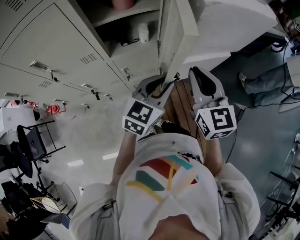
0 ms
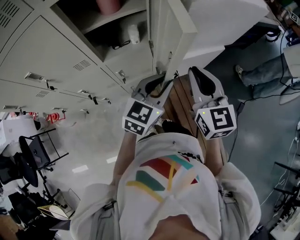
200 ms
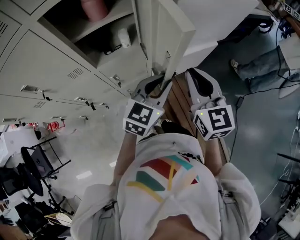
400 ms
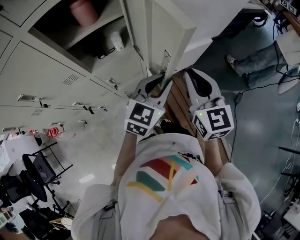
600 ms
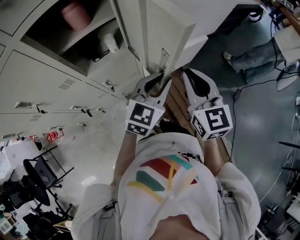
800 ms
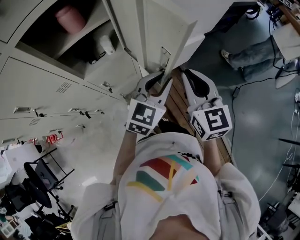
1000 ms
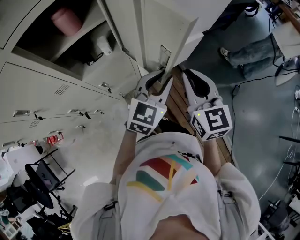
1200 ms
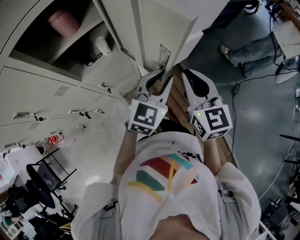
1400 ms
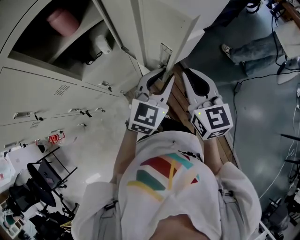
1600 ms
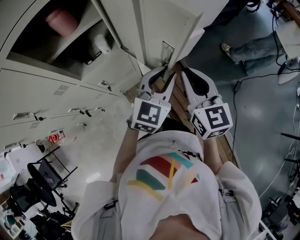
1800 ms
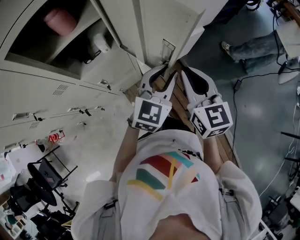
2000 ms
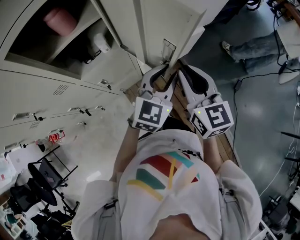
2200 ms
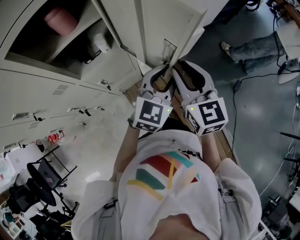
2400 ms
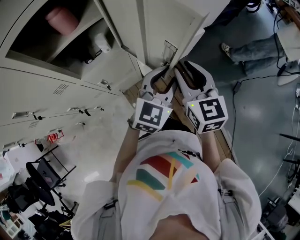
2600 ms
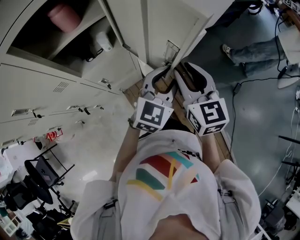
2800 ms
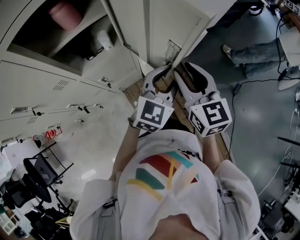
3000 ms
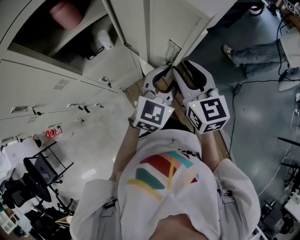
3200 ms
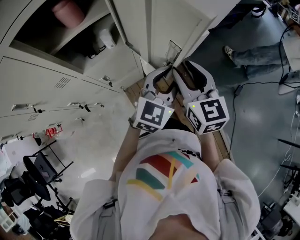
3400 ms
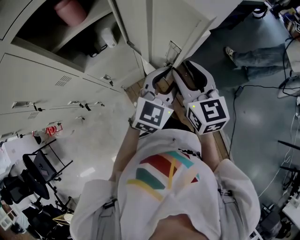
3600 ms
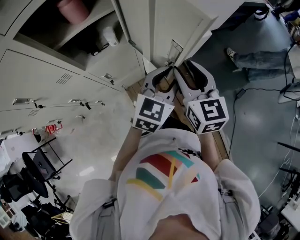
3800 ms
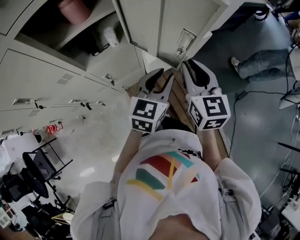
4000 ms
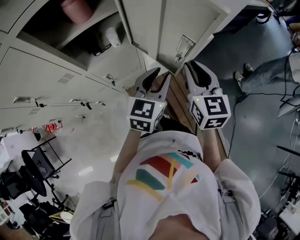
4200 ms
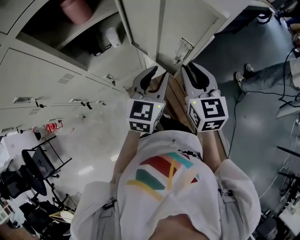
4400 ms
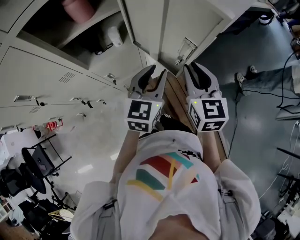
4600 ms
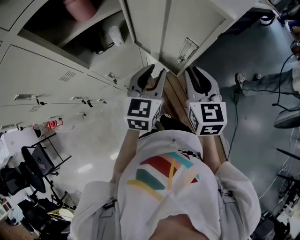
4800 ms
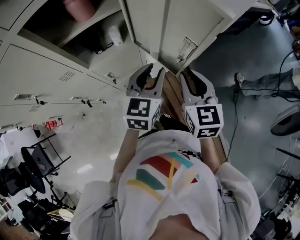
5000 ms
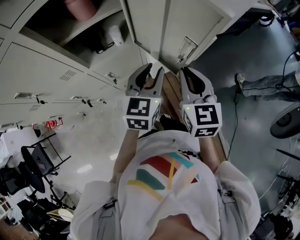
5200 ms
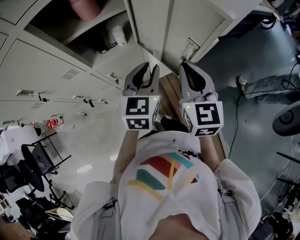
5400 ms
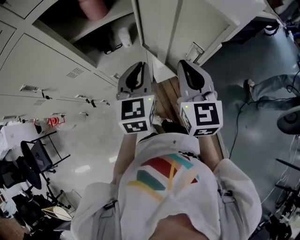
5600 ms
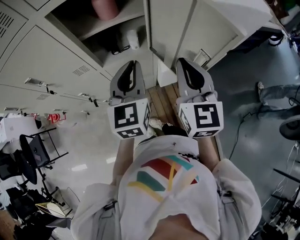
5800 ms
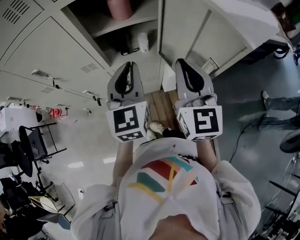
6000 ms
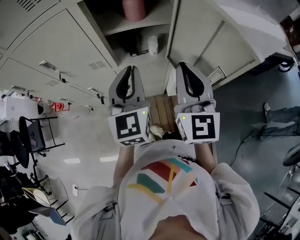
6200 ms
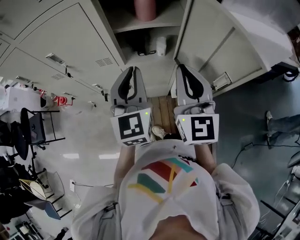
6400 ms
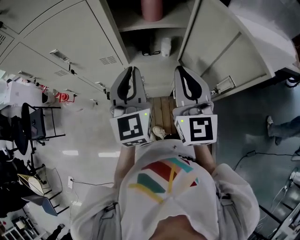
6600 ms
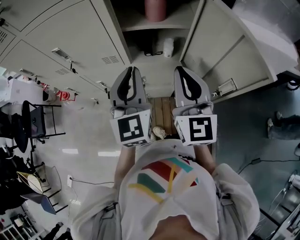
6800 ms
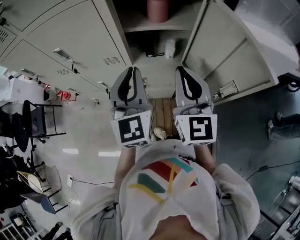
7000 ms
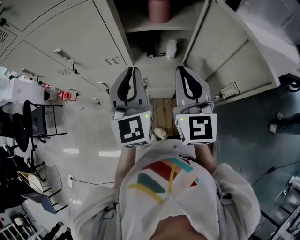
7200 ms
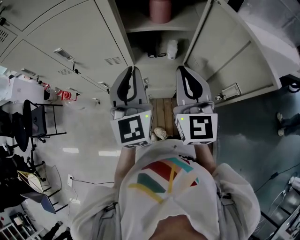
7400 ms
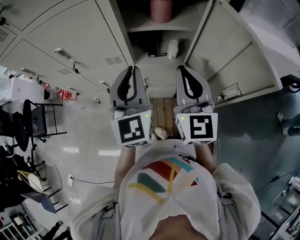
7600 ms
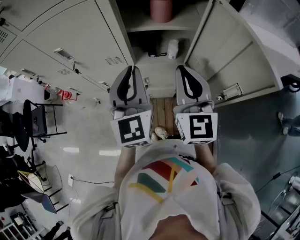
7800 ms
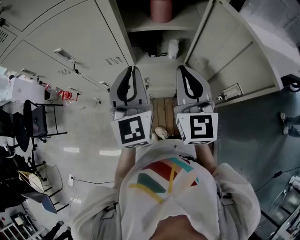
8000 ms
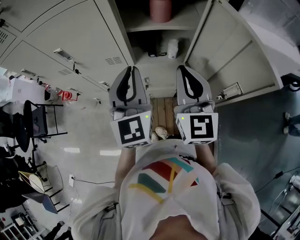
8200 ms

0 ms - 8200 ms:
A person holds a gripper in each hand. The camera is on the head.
0 ms - 1600 ms: Both grippers move to the right, approximately 10 cm.
1600 ms - 3200 ms: The right gripper opens up.
3200 ms - 5000 ms: The left gripper is displaced to the left by approximately 10 cm, and swivels approximately 20 degrees.
5000 ms - 6600 ms: The left gripper ends up some 25 cm from where it was, and turns by about 50 degrees. Meanwhile the right gripper shifts by some 20 cm, and swivels approximately 30 degrees.
6600 ms - 8200 ms: There are only small adjustments of the grippers.

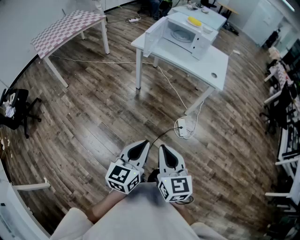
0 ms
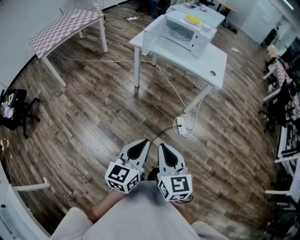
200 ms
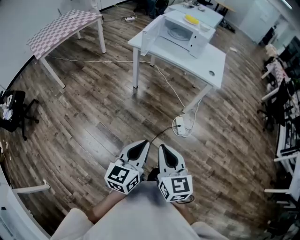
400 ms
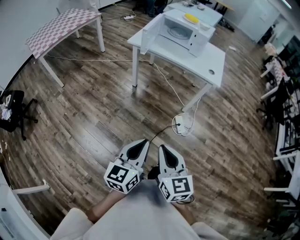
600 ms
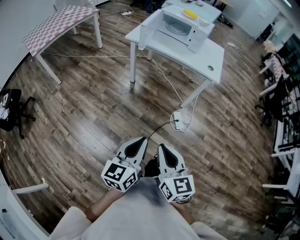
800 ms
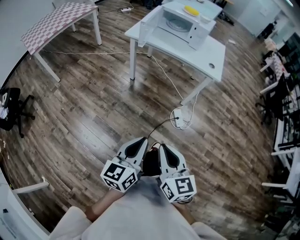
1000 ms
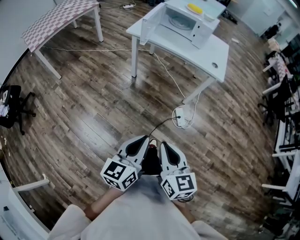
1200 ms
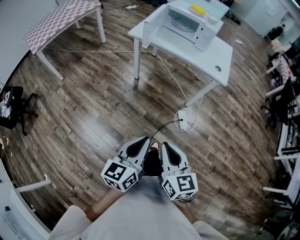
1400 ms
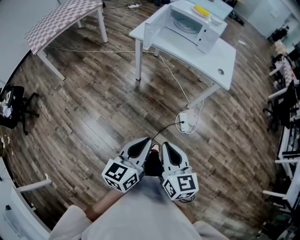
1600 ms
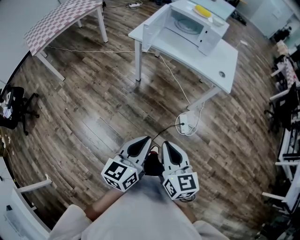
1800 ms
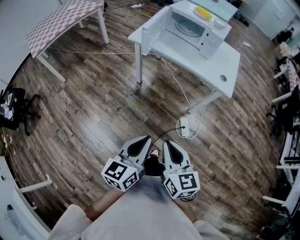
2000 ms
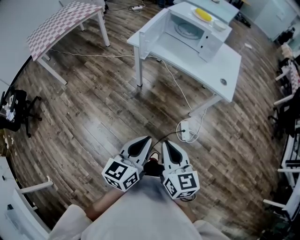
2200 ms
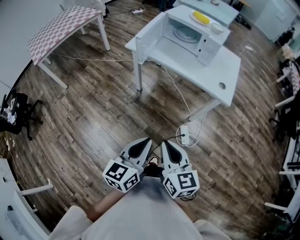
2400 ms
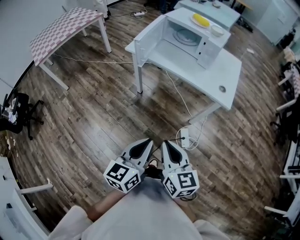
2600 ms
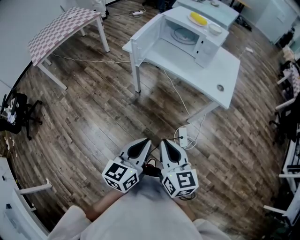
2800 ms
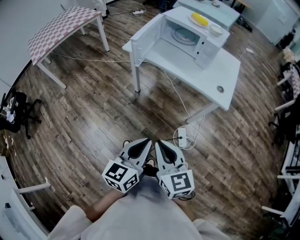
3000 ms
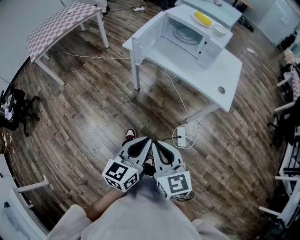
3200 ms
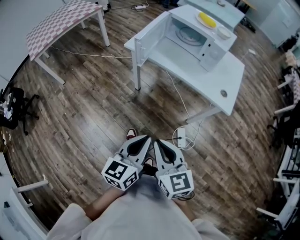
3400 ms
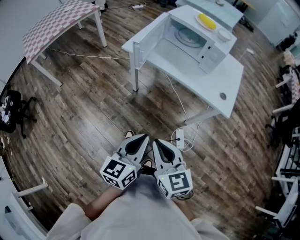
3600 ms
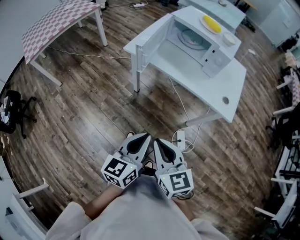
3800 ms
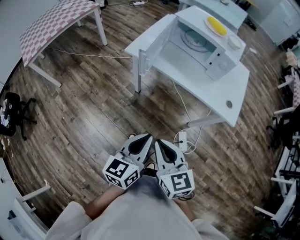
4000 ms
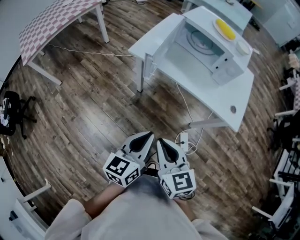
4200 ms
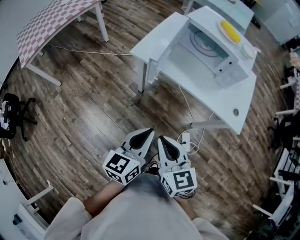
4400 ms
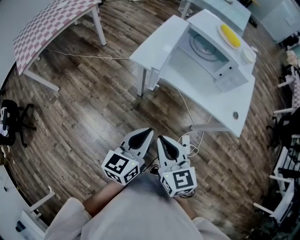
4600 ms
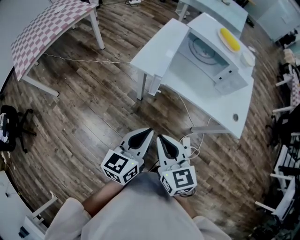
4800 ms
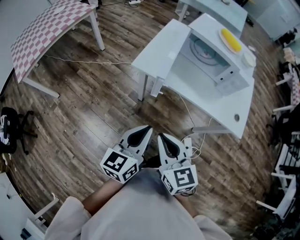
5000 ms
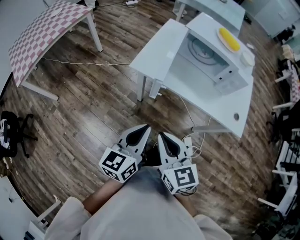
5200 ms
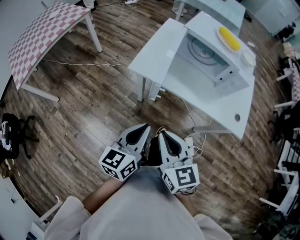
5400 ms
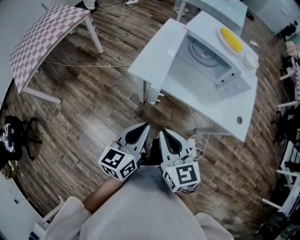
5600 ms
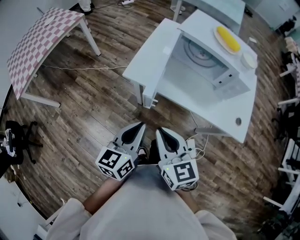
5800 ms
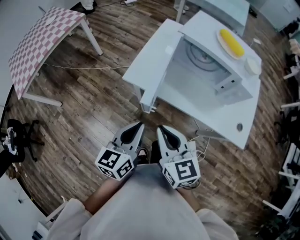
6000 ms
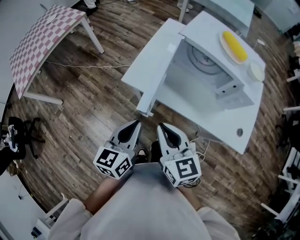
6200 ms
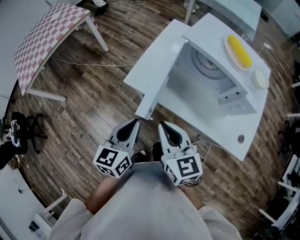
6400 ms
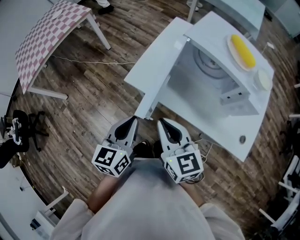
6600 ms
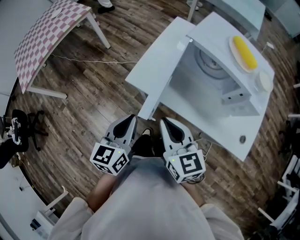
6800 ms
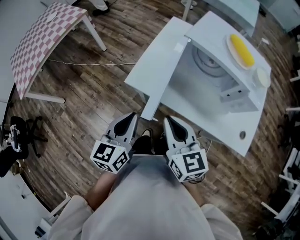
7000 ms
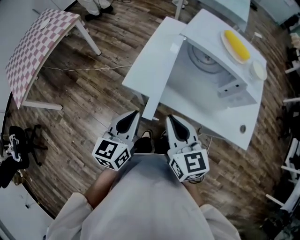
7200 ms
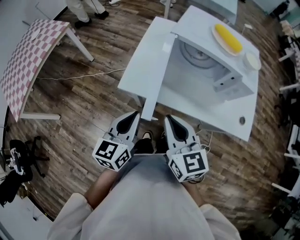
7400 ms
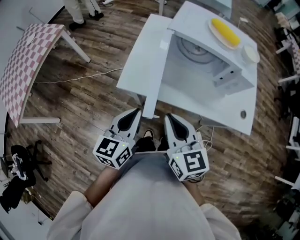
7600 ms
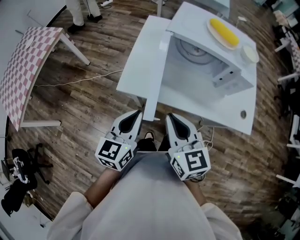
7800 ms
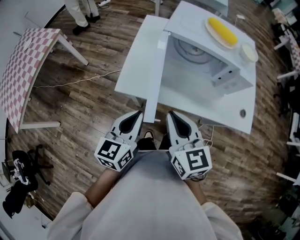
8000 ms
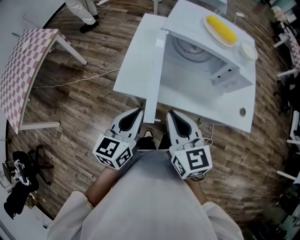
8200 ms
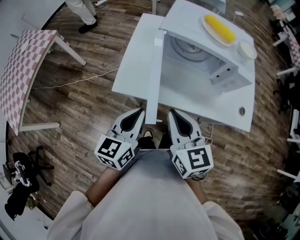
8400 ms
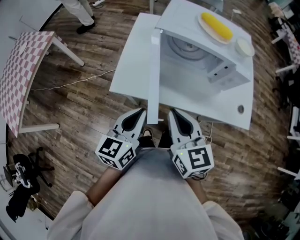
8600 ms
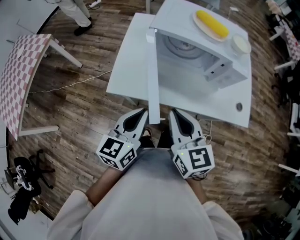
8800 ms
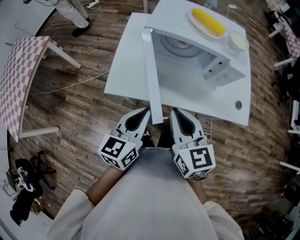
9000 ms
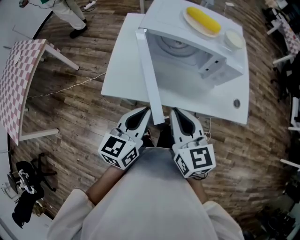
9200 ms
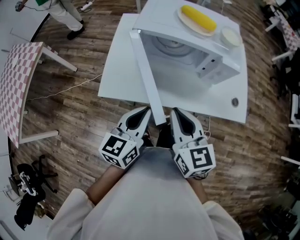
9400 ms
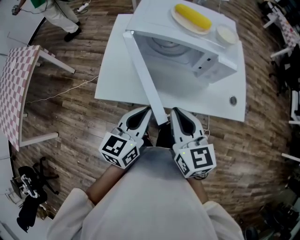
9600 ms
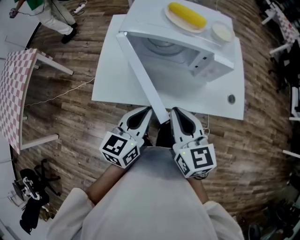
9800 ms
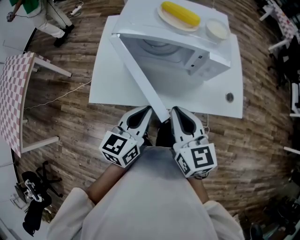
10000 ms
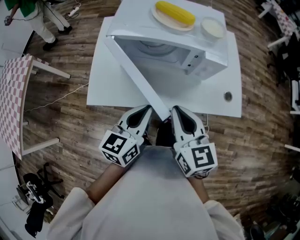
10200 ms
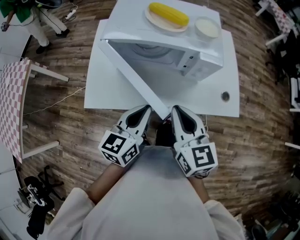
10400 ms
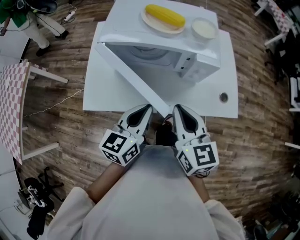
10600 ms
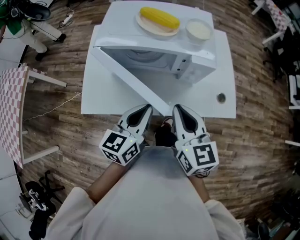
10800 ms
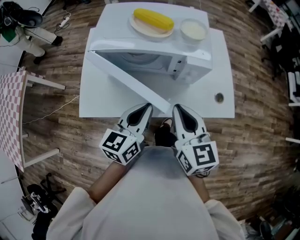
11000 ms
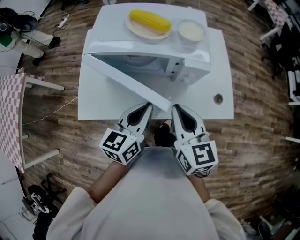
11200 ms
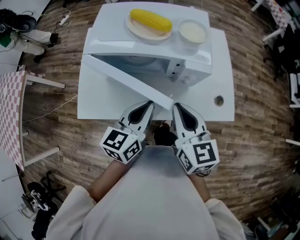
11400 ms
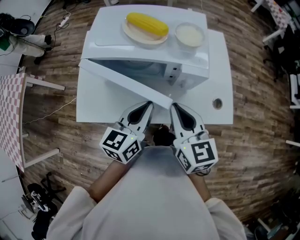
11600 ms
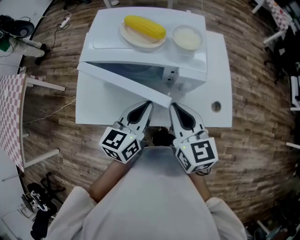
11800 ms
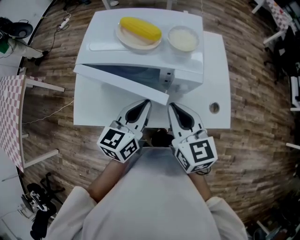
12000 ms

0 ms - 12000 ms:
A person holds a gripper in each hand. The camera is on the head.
0 ms - 1600 ms: Both grippers move forward, roughly 10 cm.
1600 ms - 3000 ms: The right gripper goes roughly 15 cm forward, while the left gripper is displaced forward and to the right by approximately 15 cm.
3000 ms - 4400 ms: Both grippers move forward and to the left, about 25 cm.
4400 ms - 6000 ms: Both grippers move forward, roughly 20 cm.
6000 ms - 7600 ms: The grippers both shift forward by roughly 10 cm.
7600 ms - 9000 ms: Both grippers move to the right, approximately 5 cm.
9000 ms - 10400 ms: The right gripper travels to the right by some 10 cm, while the left gripper goes some 10 cm to the right and forward.
10400 ms - 12000 ms: The grippers both shift forward and to the right by some 10 cm.

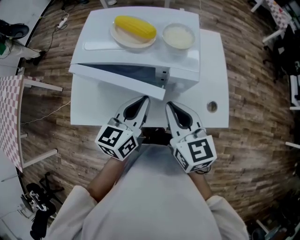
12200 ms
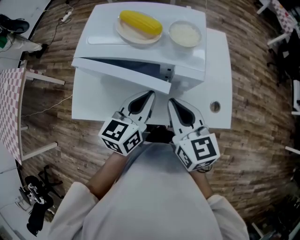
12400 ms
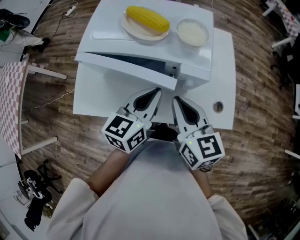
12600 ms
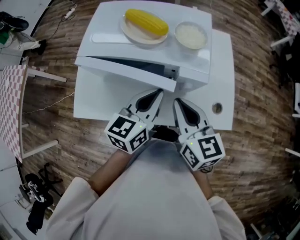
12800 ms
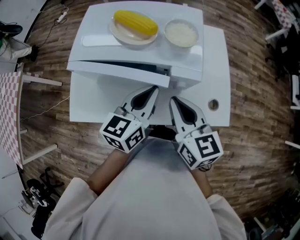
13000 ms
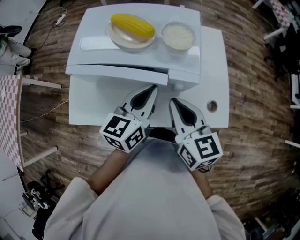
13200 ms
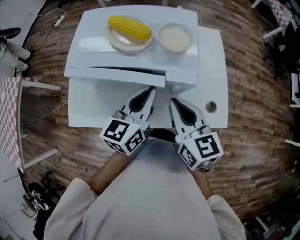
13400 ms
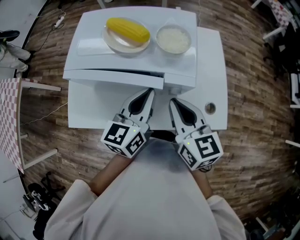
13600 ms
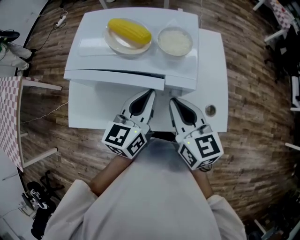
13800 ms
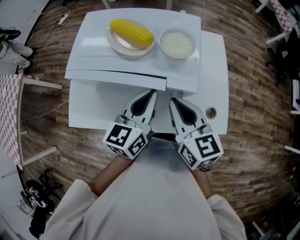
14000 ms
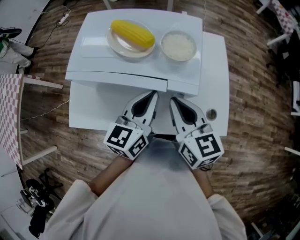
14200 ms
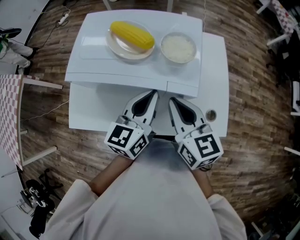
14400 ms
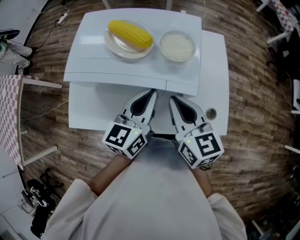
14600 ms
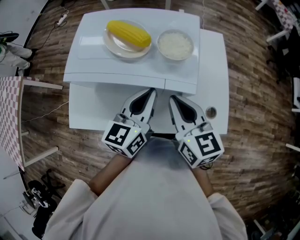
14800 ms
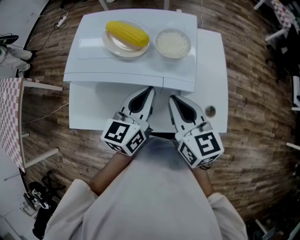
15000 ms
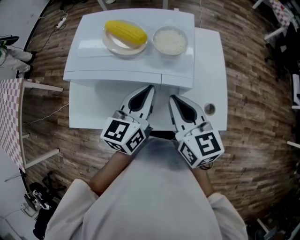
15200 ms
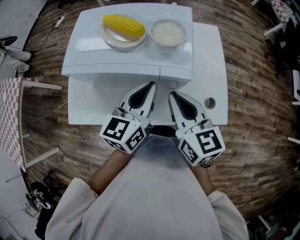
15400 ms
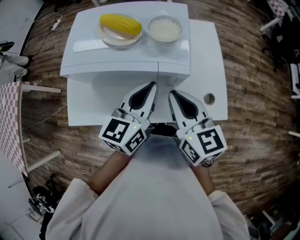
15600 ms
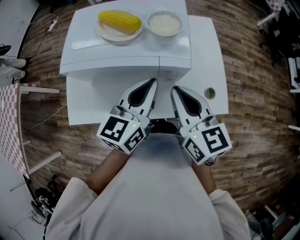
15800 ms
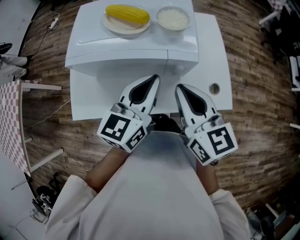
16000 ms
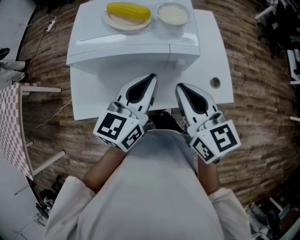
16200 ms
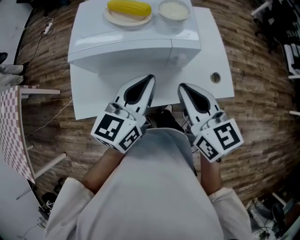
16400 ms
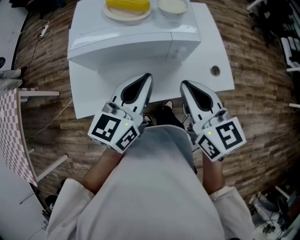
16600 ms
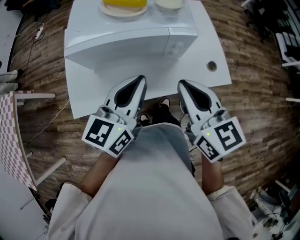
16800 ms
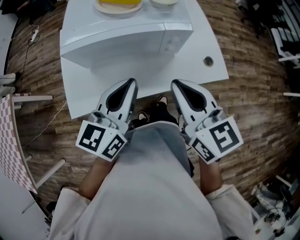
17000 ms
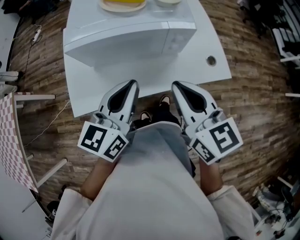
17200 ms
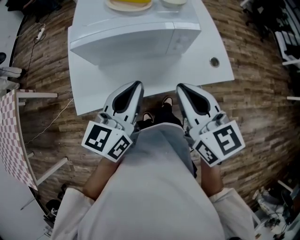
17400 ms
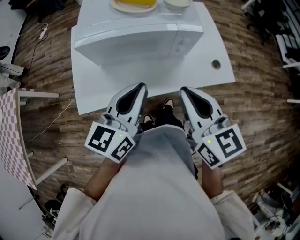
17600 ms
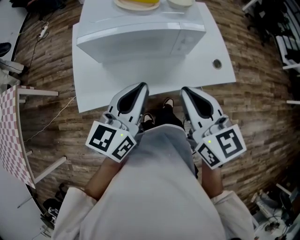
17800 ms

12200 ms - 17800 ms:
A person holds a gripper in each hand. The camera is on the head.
12200 ms - 13600 ms: The left gripper shifts by some 5 cm.
13600 ms - 15000 ms: The grippers make only small movements.
15000 ms - 16400 ms: The left gripper shifts roughly 10 cm backward and upward; the right gripper goes some 10 cm backward.
16400 ms - 17800 ms: Both grippers travel together backward, about 10 cm.
